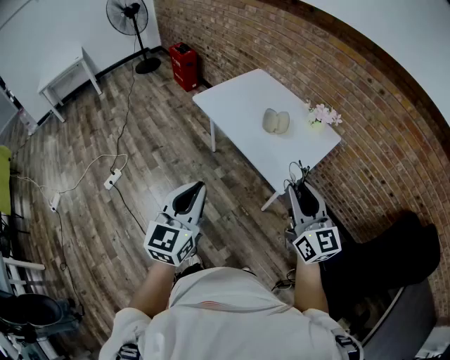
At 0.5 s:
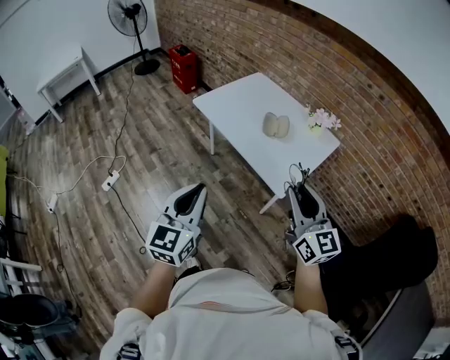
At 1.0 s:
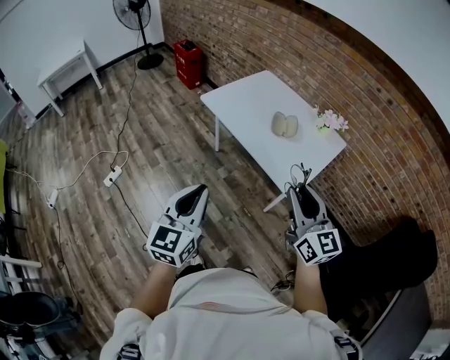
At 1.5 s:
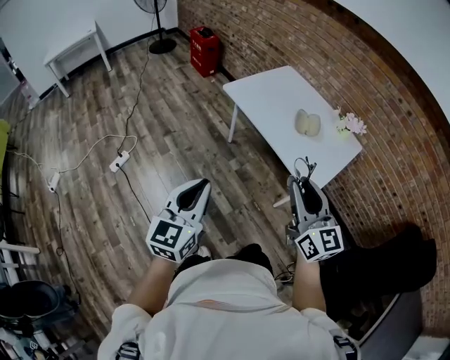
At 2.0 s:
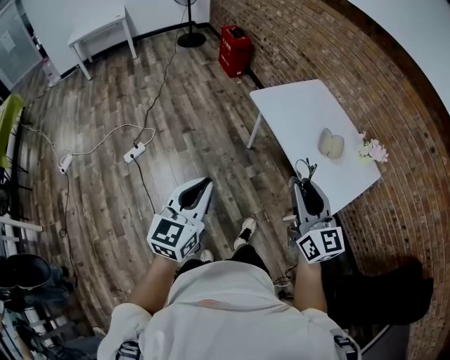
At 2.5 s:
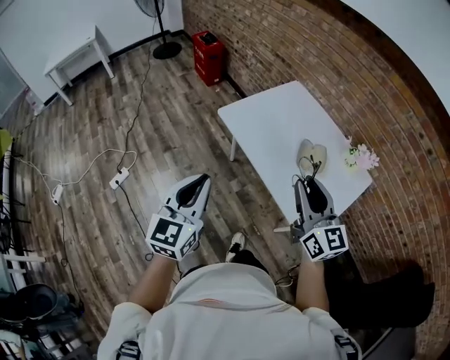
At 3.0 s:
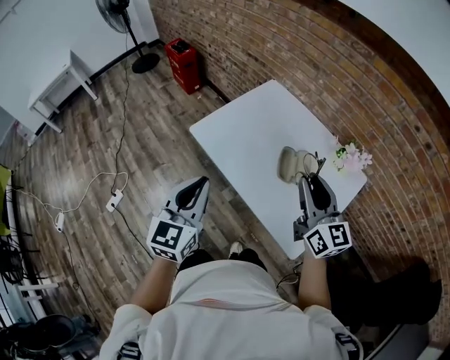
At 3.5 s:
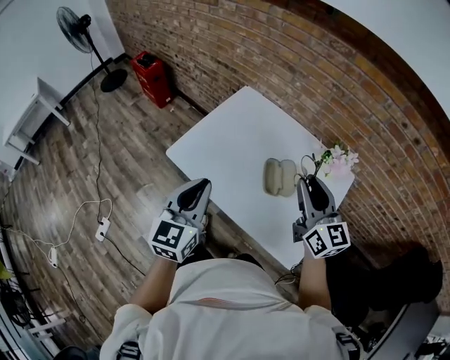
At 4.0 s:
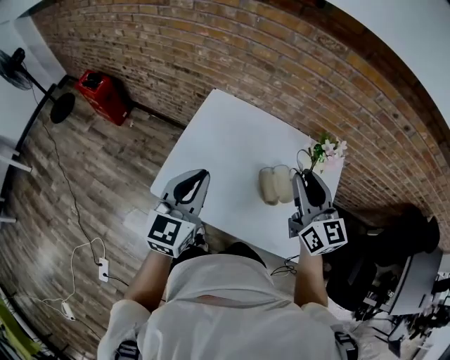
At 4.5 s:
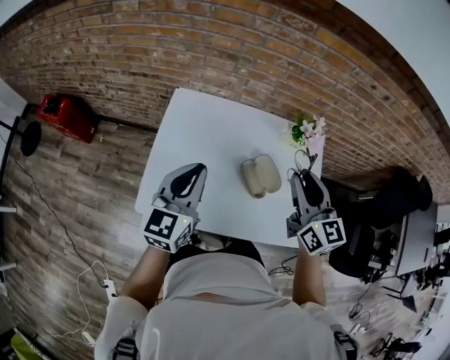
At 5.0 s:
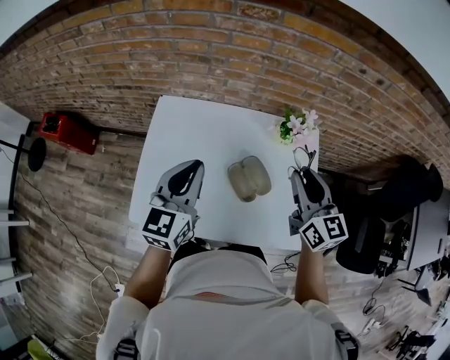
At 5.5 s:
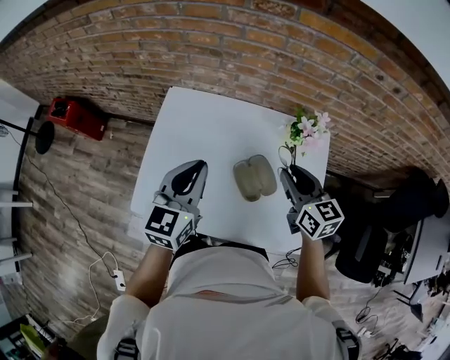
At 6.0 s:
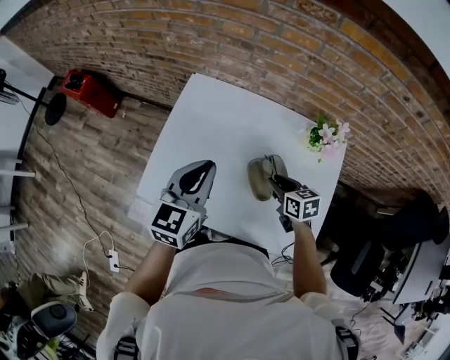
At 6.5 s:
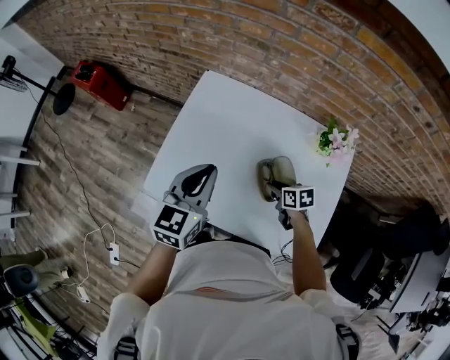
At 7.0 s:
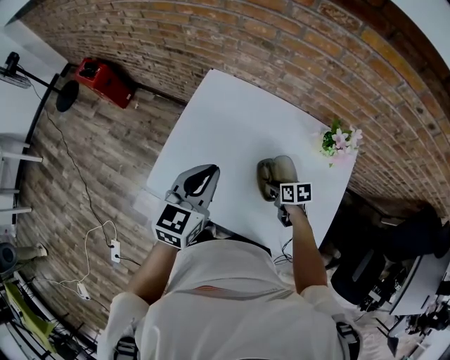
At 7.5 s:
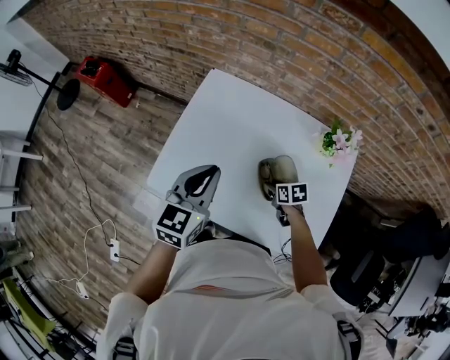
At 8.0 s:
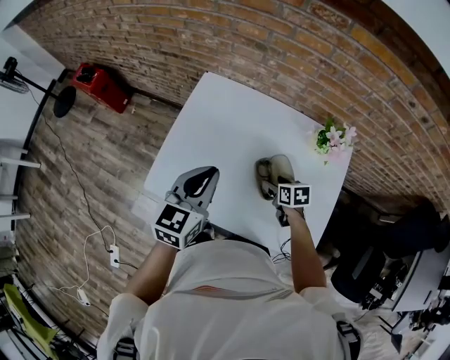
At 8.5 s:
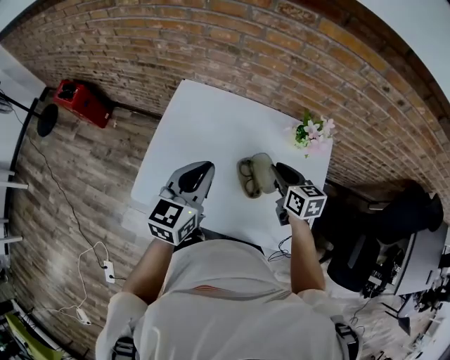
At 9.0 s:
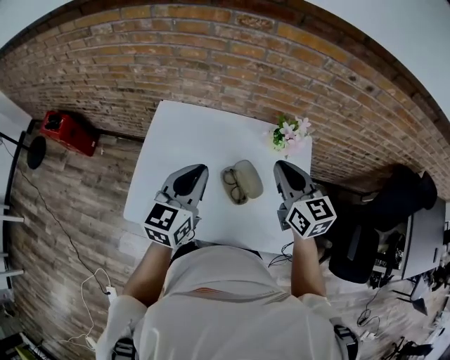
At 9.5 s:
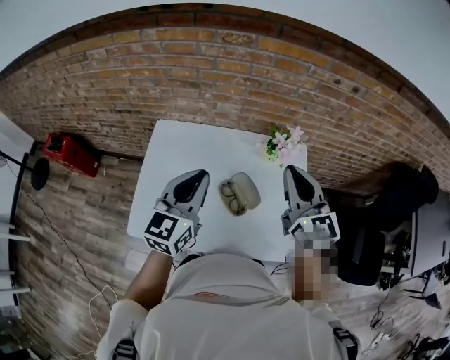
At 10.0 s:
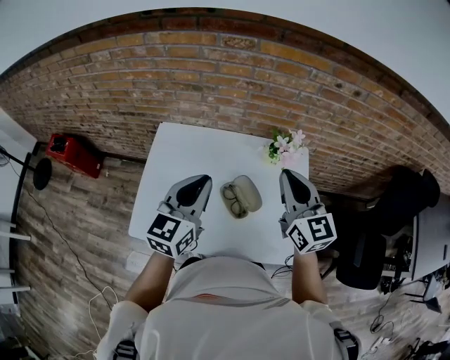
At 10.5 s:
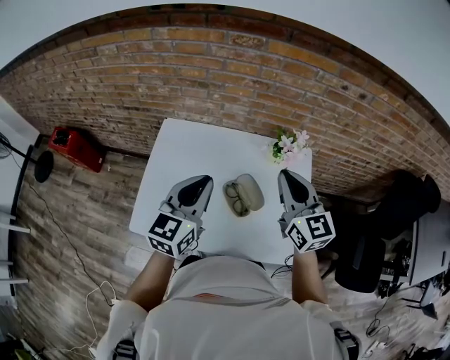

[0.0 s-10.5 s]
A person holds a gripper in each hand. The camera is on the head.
0.0 to 2.0 s: The right gripper goes some 25 cm to the left and forward; the left gripper heads to the left, covering approximately 20 cm.
2.0 to 4.0 s: The two grippers travel together, some 50 cm. The left gripper turns by some 40 degrees, while the right gripper changes its angle by roughly 40 degrees.
4.0 to 6.5 s: The left gripper moves some 10 cm; the right gripper goes approximately 35 cm downward, and points its fingers roughly 50 degrees further downward.
6.5 to 8.5 s: The right gripper travels upward by approximately 15 cm, turns by some 30 degrees, and opens and closes again.
8.5 to 10.5 s: The left gripper heads upward and to the right, covering roughly 10 cm. The right gripper heads upward, covering about 20 cm, and swivels roughly 30 degrees.

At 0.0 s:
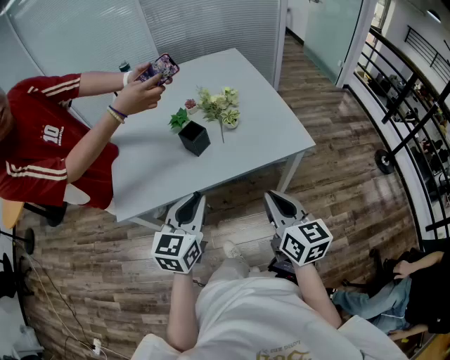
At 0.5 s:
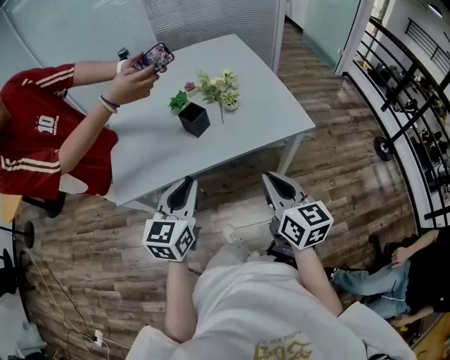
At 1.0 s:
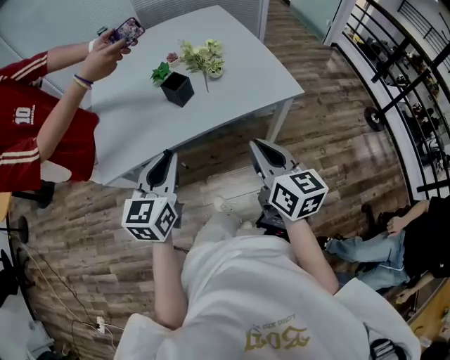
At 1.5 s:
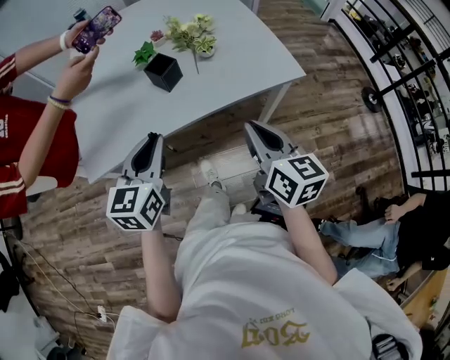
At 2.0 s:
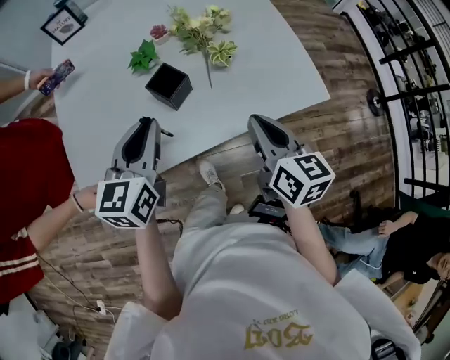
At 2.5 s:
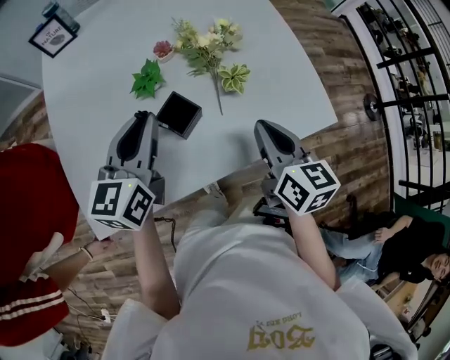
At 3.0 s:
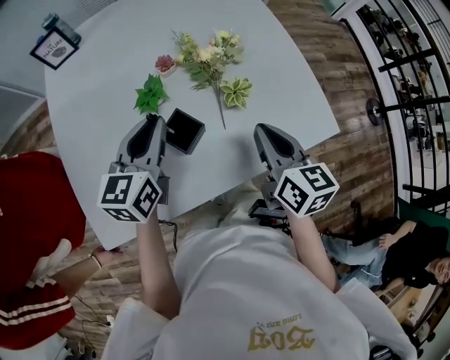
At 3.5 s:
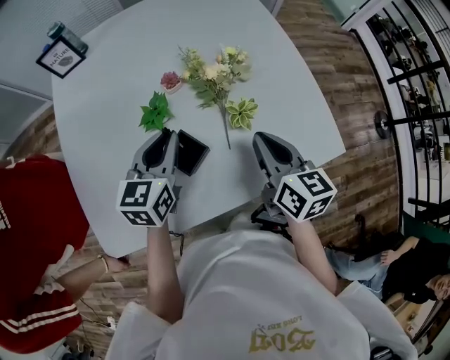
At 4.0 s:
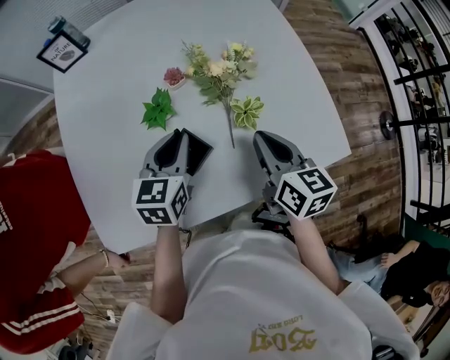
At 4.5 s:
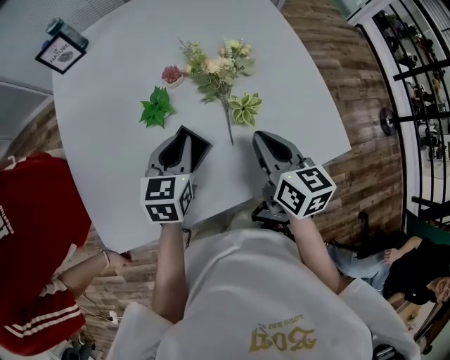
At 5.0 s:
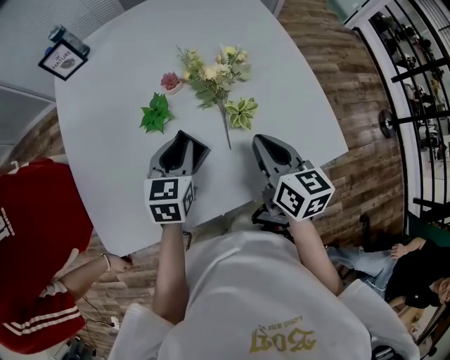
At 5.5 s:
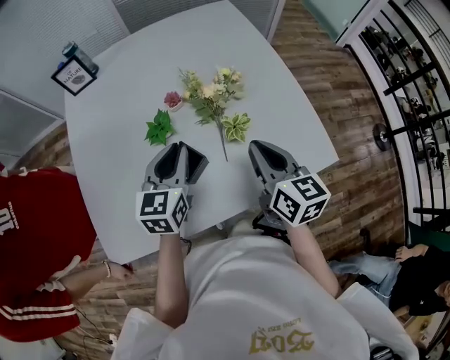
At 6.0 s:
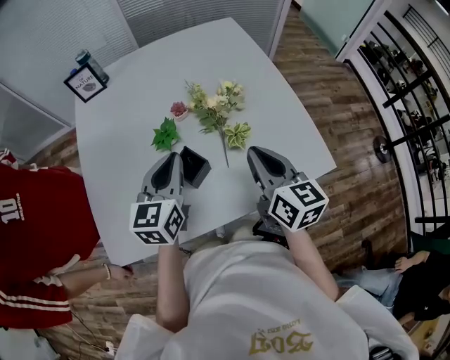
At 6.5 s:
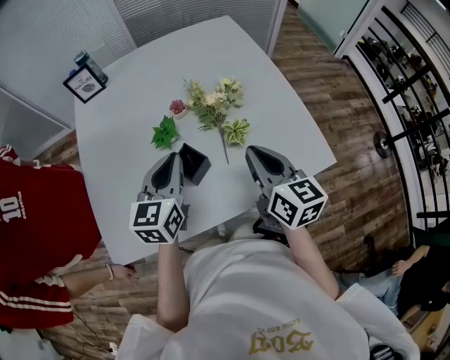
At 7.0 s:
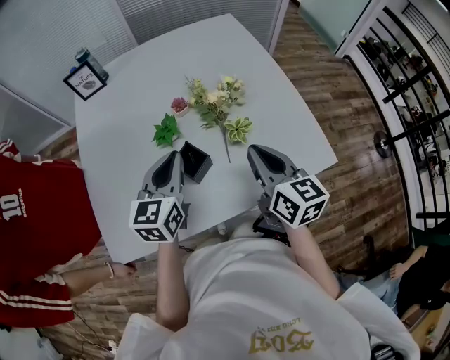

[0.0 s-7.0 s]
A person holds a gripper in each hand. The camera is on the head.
0.0 to 2.0 s: Both grippers travel together forward, some 20 cm.
2.0 to 3.5 s: The two grippers go approximately 15 cm forward.
3.5 to 5.0 s: The left gripper moves downward, approximately 5 cm.
5.0 to 7.0 s: The left gripper heads upward, covering roughly 10 cm. Meanwhile the right gripper goes some 5 cm upward.

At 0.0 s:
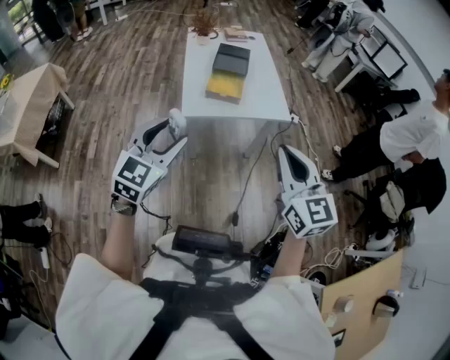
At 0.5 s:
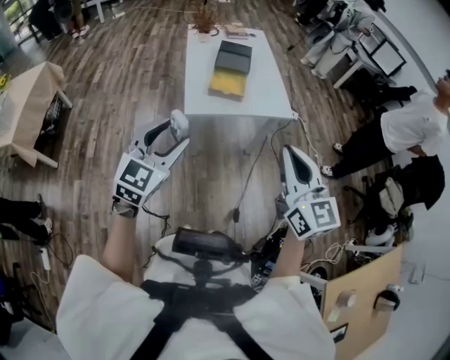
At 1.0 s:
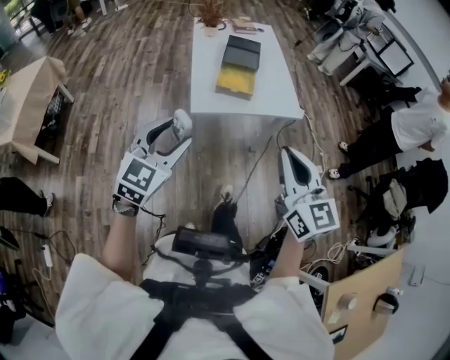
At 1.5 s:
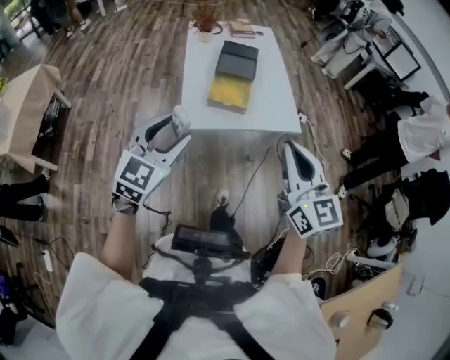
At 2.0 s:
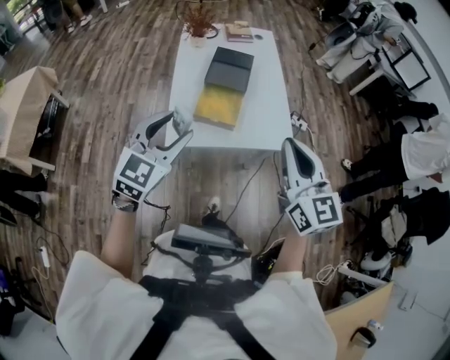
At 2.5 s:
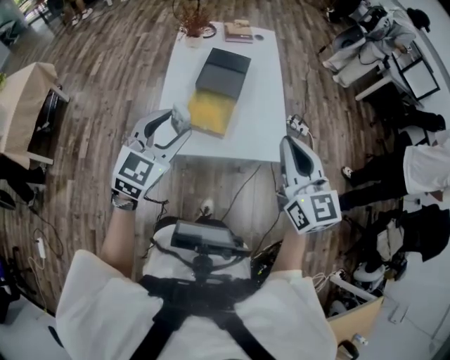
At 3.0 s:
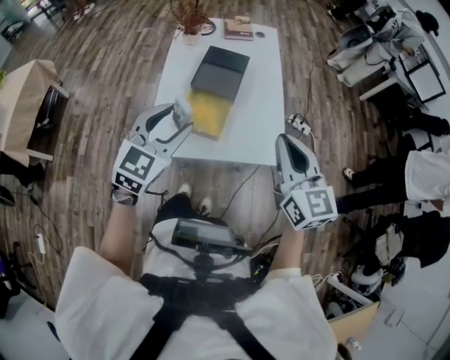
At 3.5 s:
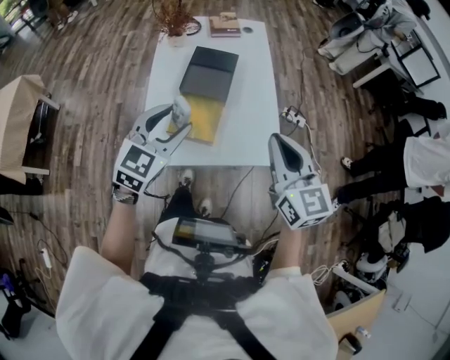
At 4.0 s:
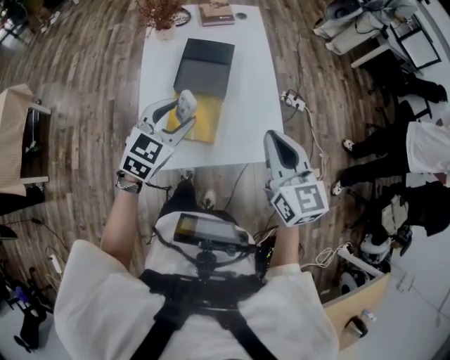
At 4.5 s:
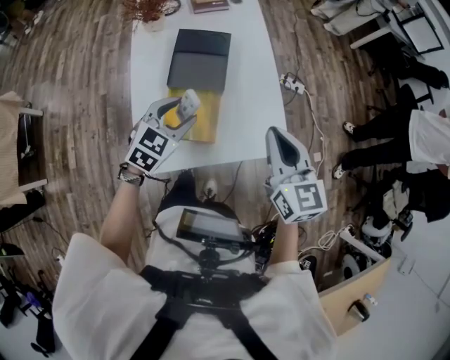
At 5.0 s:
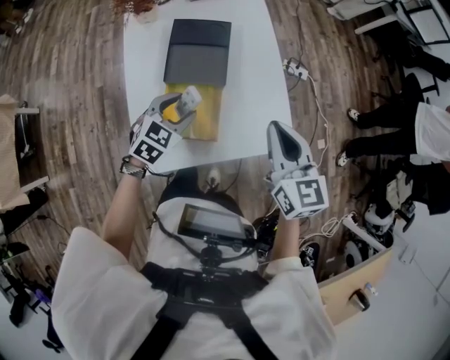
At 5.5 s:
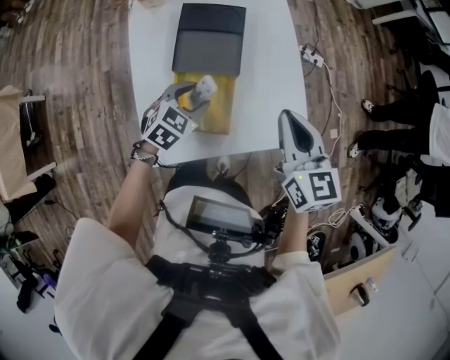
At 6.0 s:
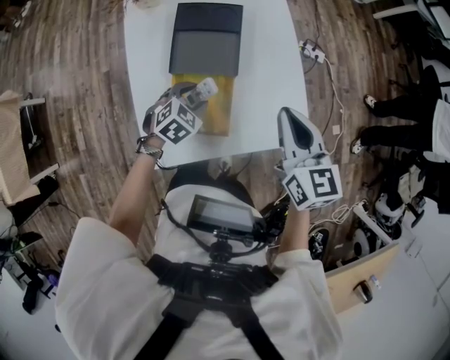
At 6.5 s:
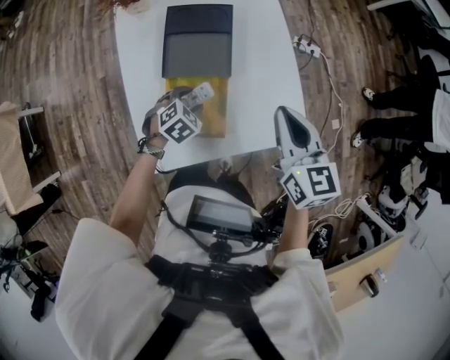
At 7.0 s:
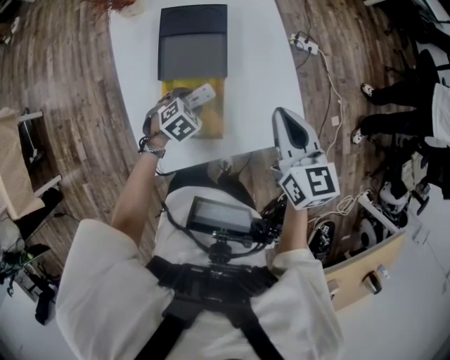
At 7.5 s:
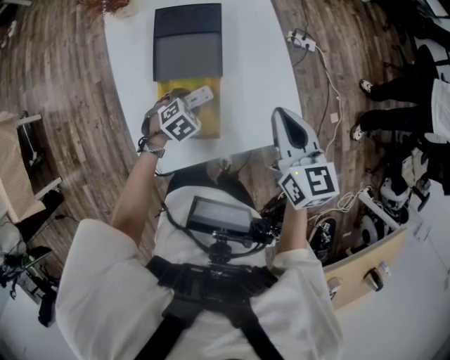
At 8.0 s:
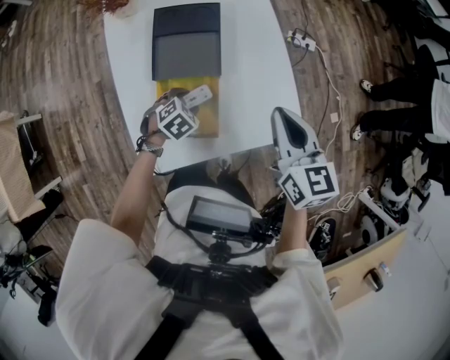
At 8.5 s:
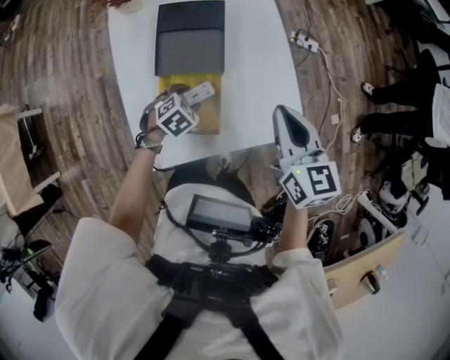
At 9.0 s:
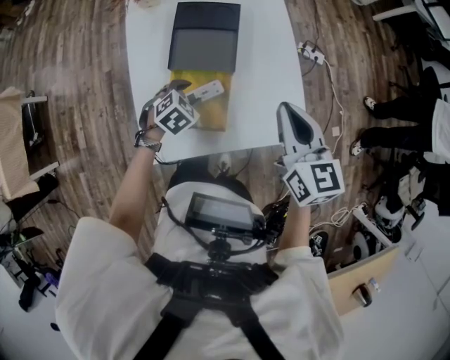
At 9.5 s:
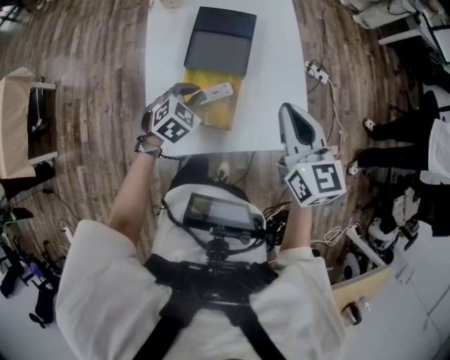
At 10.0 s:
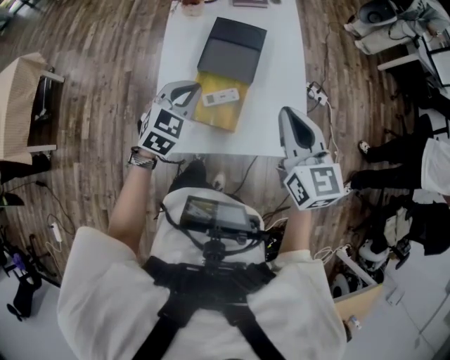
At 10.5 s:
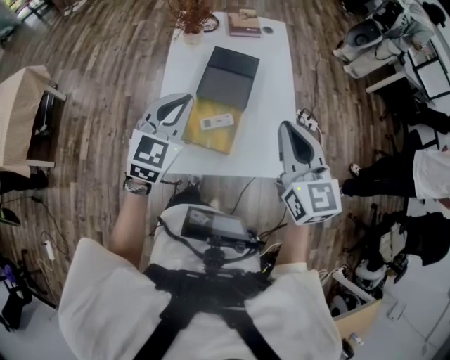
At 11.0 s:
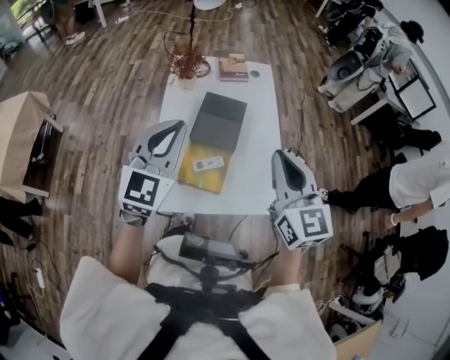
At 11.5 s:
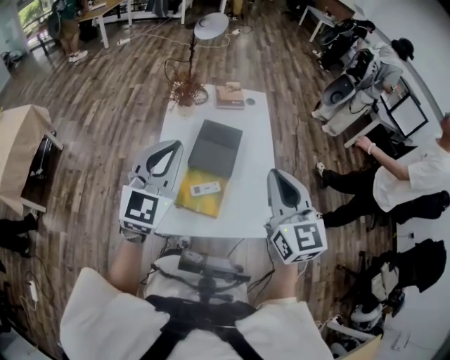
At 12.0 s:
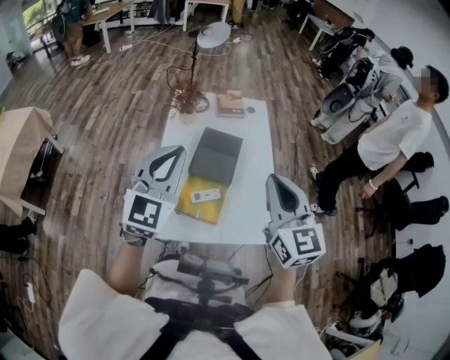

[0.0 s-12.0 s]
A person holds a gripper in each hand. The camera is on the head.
0.0 to 2.0 s: Both grippers move forward, roughly 25 cm.
2.0 to 4.0 s: The two grippers go roughly 25 cm forward and downward.
4.0 to 6.0 s: The right gripper heads forward and downward, covering about 15 cm. Meanwhile the left gripper travels downward by approximately 25 cm, and tips its fingers downward by approximately 30 degrees.
6.0 to 8.0 s: The left gripper is displaced downward by about 5 cm.
8.0 to 10.0 s: The right gripper moves upward, to the left and backward, about 10 cm, and swivels some 20 degrees; the left gripper travels upward by some 25 cm, tilts its fingers some 40 degrees upward, and closes up.
10.0 to 12.0 s: The left gripper goes approximately 25 cm upward, and angles its fingers upward, by about 30 degrees; the right gripper heads upward, covering roughly 15 cm.
